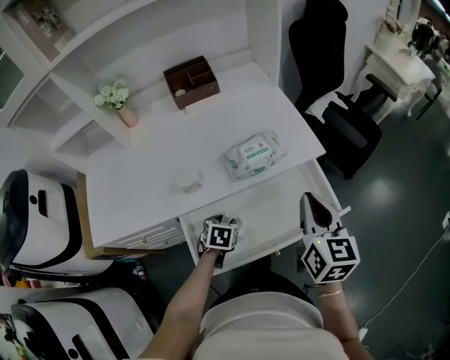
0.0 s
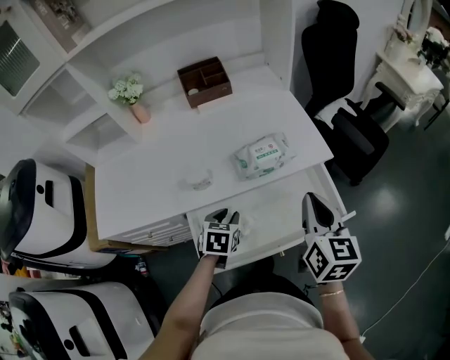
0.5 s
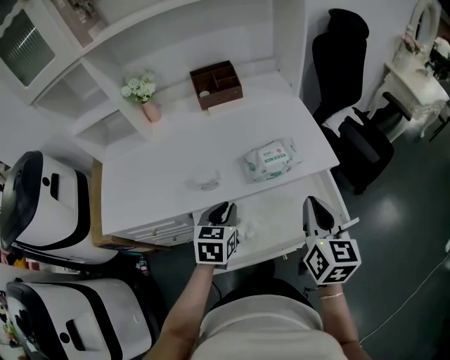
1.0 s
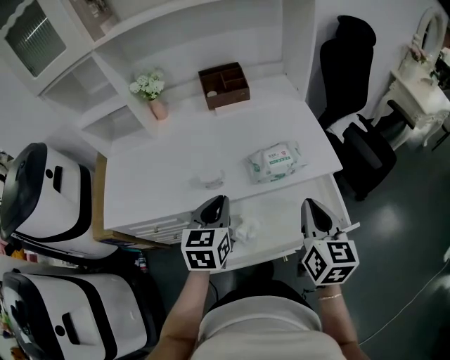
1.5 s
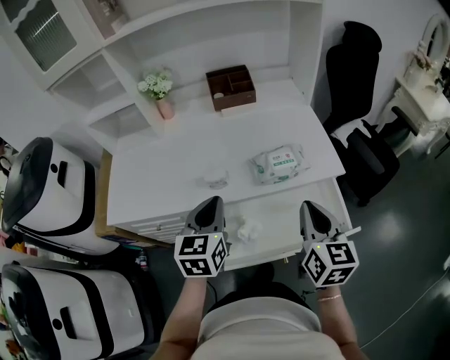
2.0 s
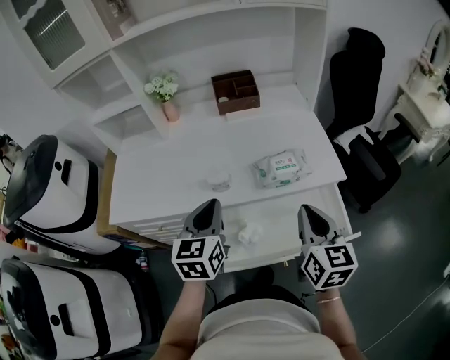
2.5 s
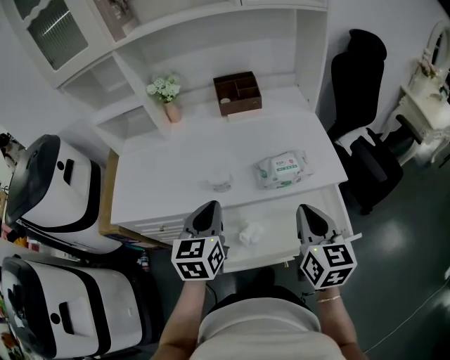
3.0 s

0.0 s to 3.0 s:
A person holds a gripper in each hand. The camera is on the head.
0.0 to 1.5 s: The left gripper travels upward by roughly 25 cm, angles its fingers upward, by roughly 40 degrees, and closes its fingers.
1.5 to 3.0 s: The left gripper changes place by approximately 5 cm.

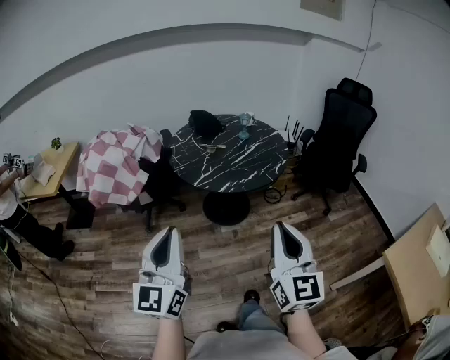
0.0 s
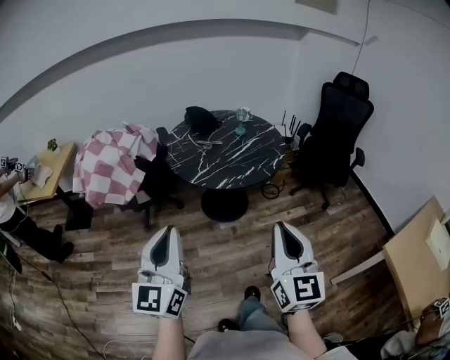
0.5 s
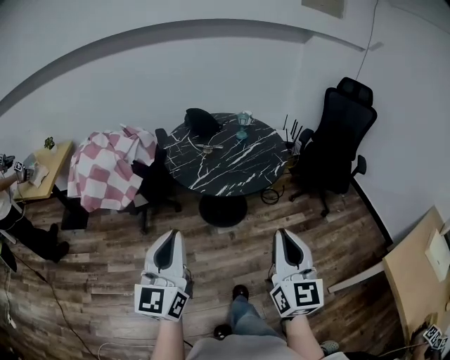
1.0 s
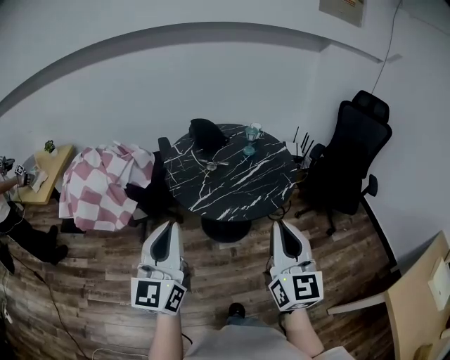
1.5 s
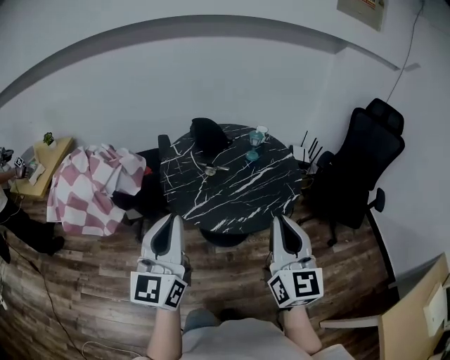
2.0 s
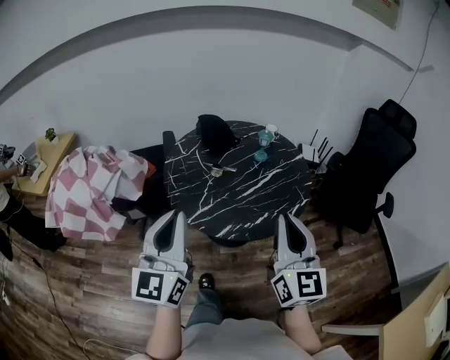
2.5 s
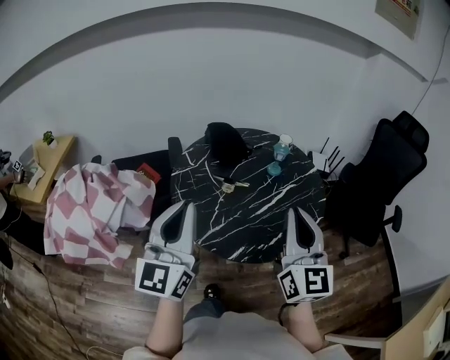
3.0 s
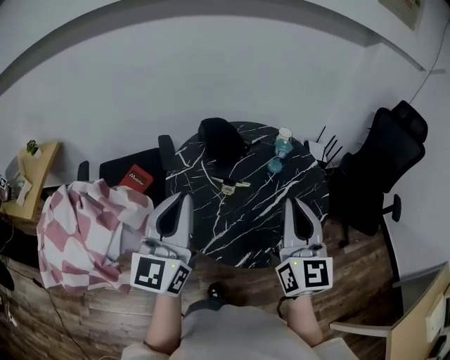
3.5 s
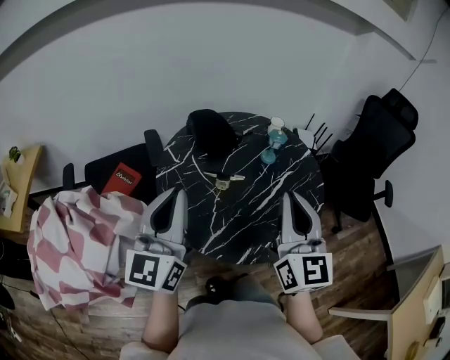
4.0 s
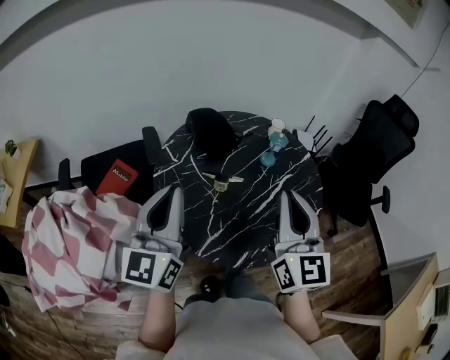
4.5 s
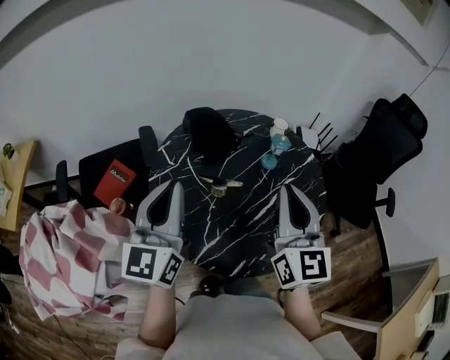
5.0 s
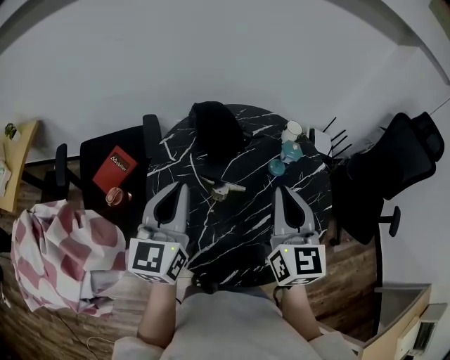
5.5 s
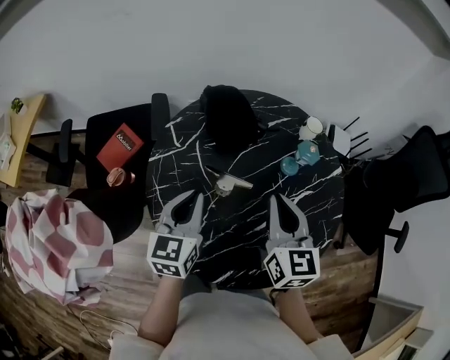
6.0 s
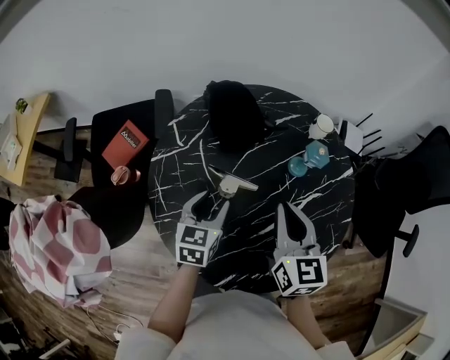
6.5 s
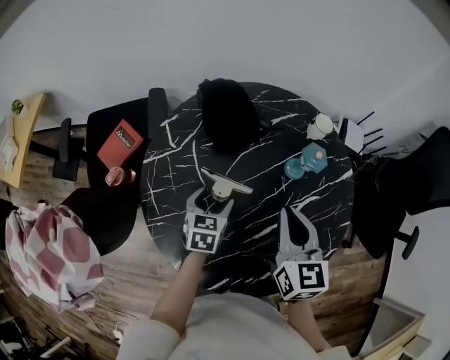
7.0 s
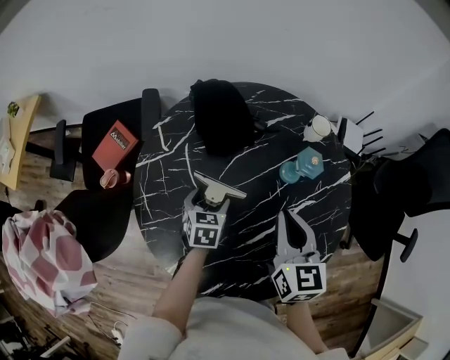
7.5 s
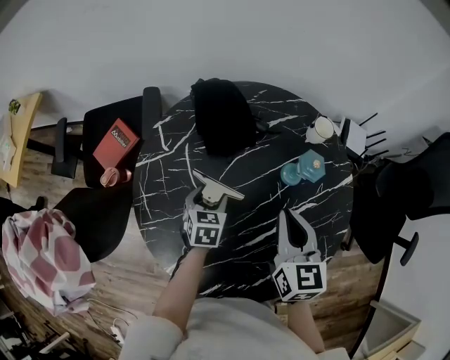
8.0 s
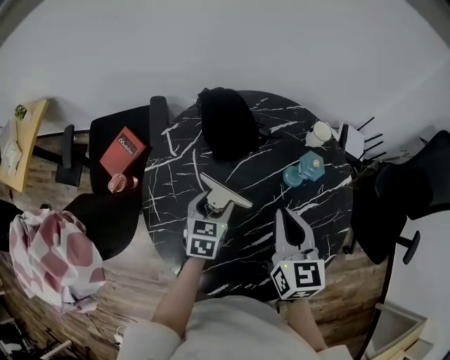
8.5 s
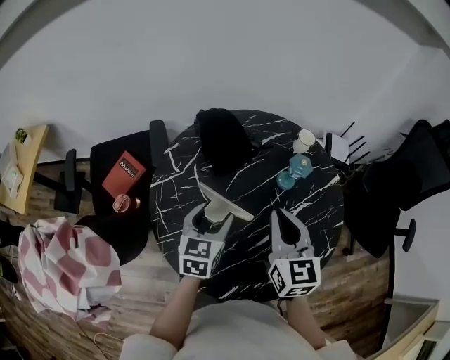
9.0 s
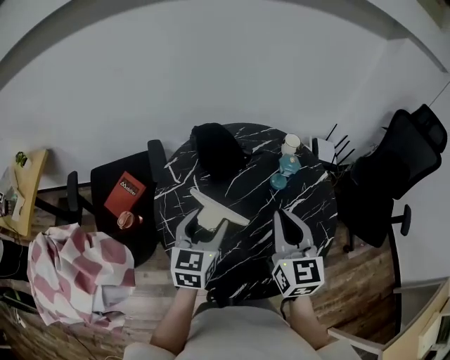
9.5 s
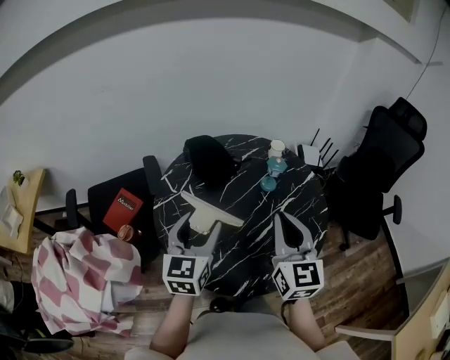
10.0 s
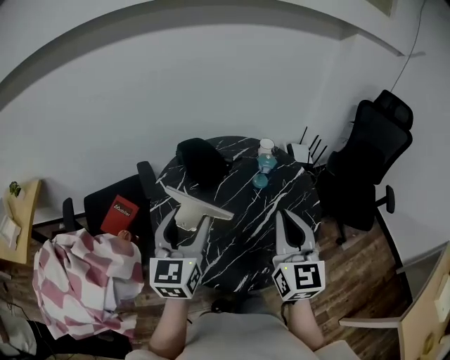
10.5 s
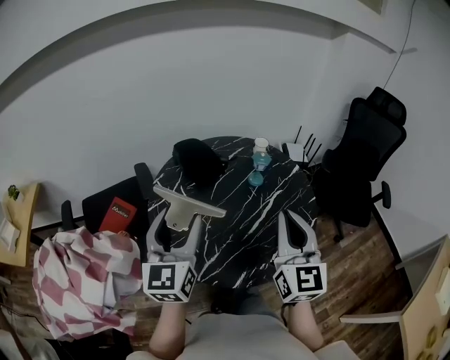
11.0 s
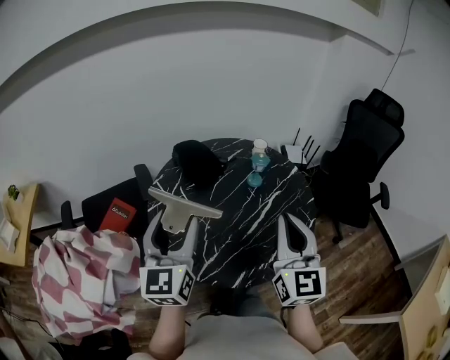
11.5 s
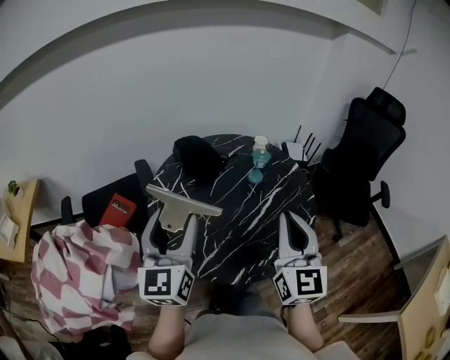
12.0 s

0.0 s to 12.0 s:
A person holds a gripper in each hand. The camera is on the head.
0.0 to 2.0 s: Both grippers travel together forward, some 25 cm.
2.0 to 4.0 s: The right gripper moves forward and to the left, about 25 cm. Meanwhile the left gripper is displaced forward by about 25 cm.
4.0 to 6.0 s: The left gripper moves downward and forward, about 25 cm, and tilts its fingers about 30 degrees downward, while the right gripper goes roughly 25 cm forward and downward, and rotates roughly 30 degrees.
6.0 to 8.0 s: The right gripper is displaced to the right and downward by approximately 10 cm. The left gripper heads downward, covering approximately 20 cm, angles its fingers downward, by about 30 degrees, and opens up.
8.0 to 10.0 s: The left gripper travels upward and backward by about 30 cm, and tips its fingers upward by approximately 40 degrees. Meanwhile the right gripper shifts approximately 20 cm upward and backward, and rotates approximately 30 degrees.
10.0 to 12.0 s: The left gripper moves upward and backward, roughly 10 cm, while the right gripper is displaced backward by some 10 cm.

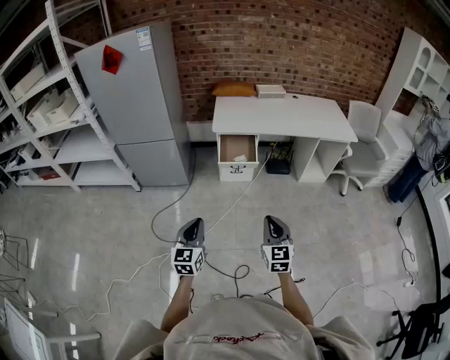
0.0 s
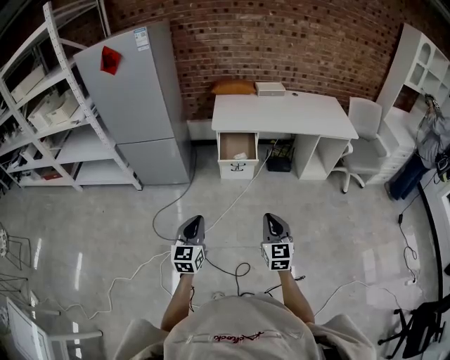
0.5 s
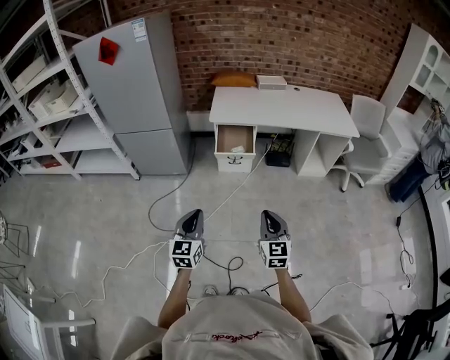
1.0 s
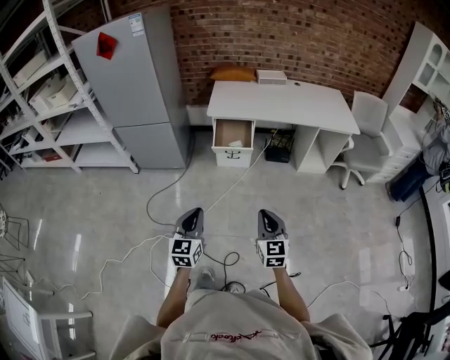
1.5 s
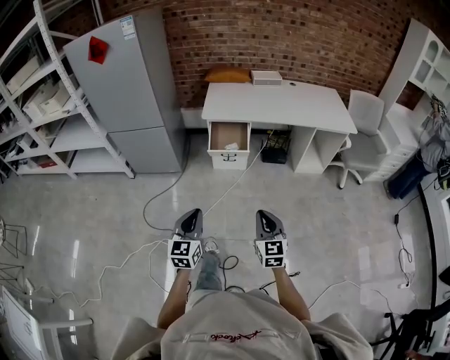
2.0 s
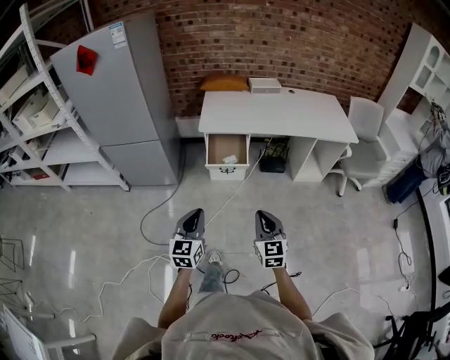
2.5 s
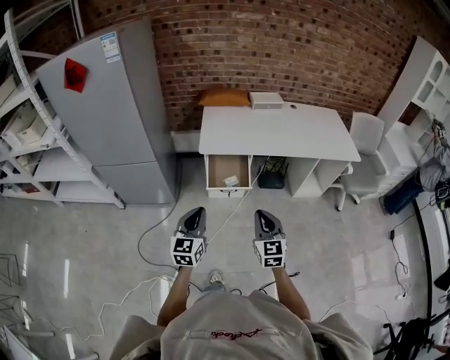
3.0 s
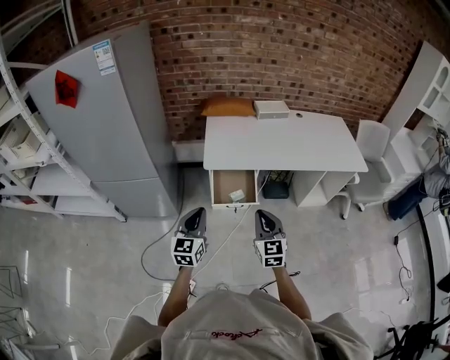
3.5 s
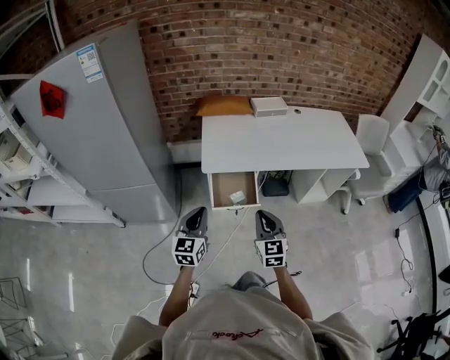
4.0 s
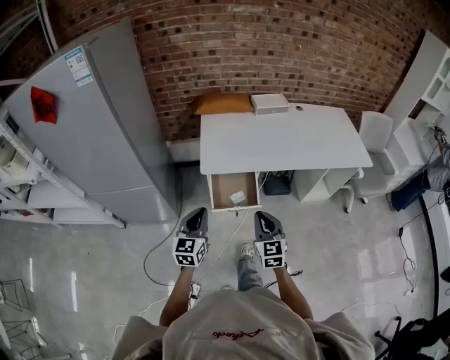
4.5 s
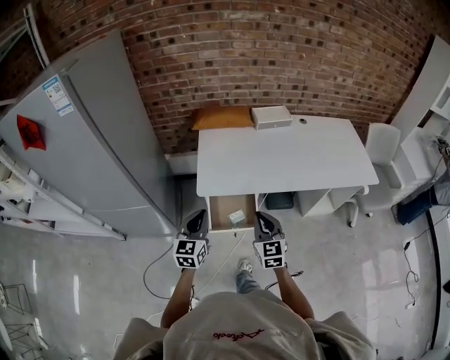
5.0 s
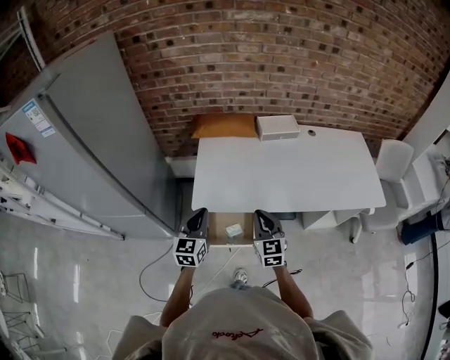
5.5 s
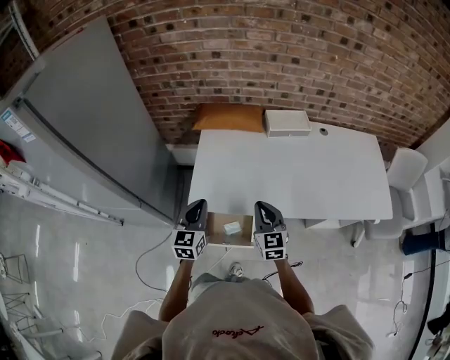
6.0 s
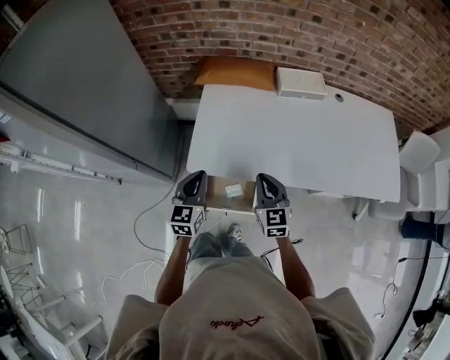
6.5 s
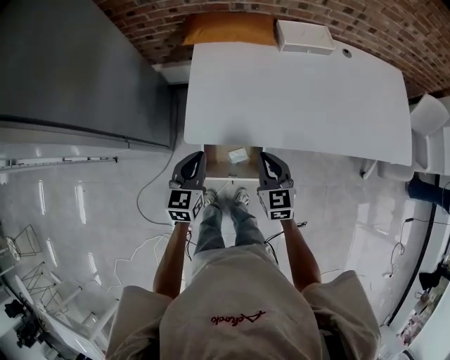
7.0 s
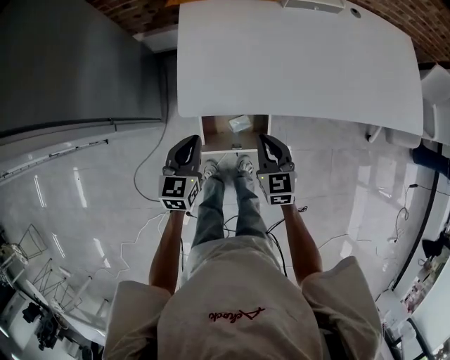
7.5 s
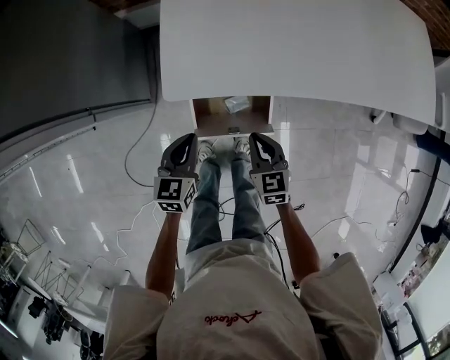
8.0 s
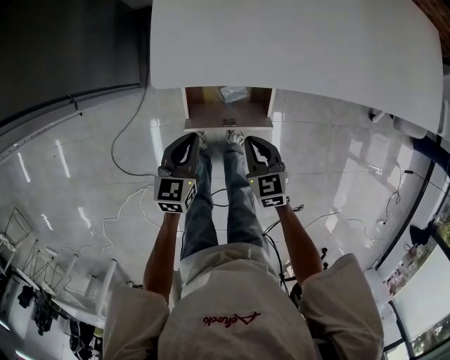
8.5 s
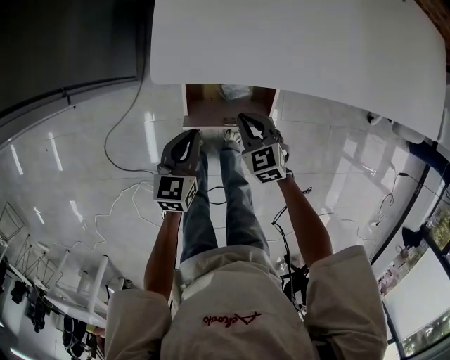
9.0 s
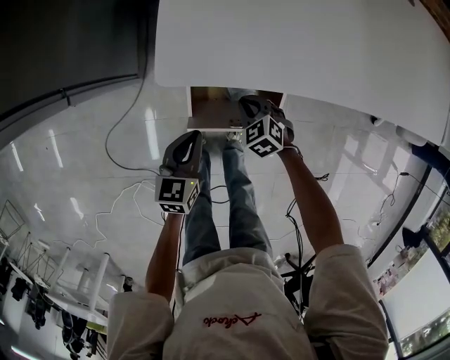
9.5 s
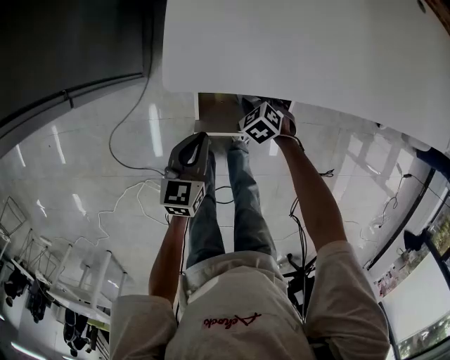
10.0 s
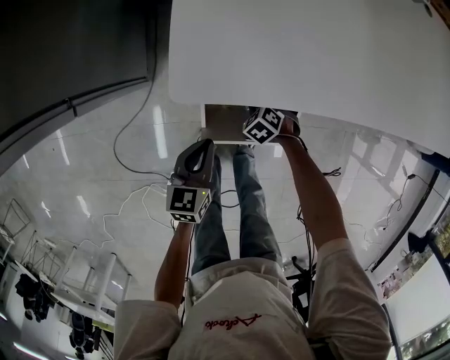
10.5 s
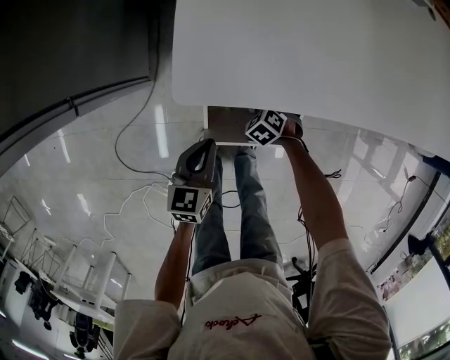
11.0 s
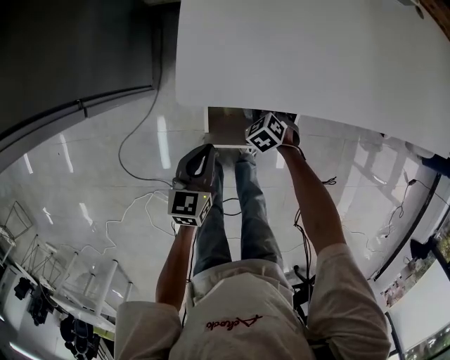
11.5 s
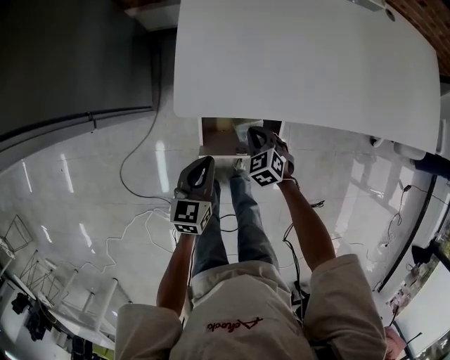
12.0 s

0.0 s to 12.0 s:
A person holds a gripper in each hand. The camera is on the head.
0.0 to 2.0 s: Both grippers travel together to the right, roughly 10 cm.
2.0 to 4.0 s: Both grippers move forward, approximately 40 cm.
4.0 to 6.0 s: Both grippers move forward, about 30 cm.
6.0 to 8.0 s: The two grippers go about 25 cm downward. The left gripper changes its angle by some 30 degrees, while the right gripper turns by approximately 30 degrees.
8.0 to 10.0 s: The right gripper goes roughly 20 cm downward, and tilts its fingers some 30 degrees downward. The left gripper is displaced downward by some 10 cm.
10.0 to 12.0 s: The right gripper goes roughly 10 cm upward; the left gripper goes about 5 cm upward.
